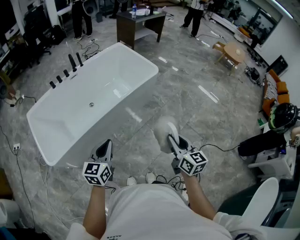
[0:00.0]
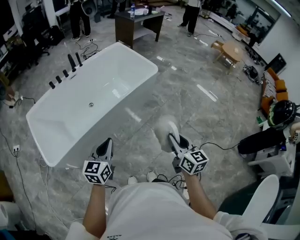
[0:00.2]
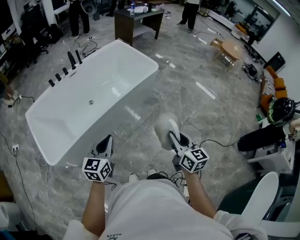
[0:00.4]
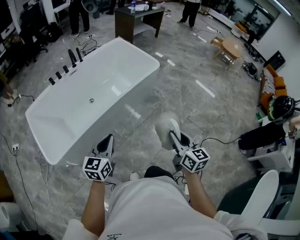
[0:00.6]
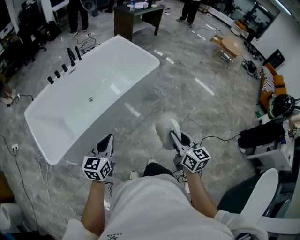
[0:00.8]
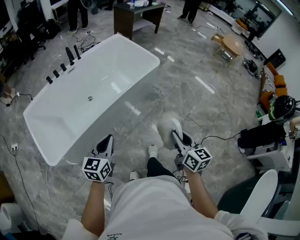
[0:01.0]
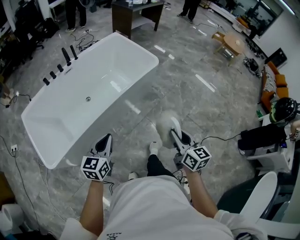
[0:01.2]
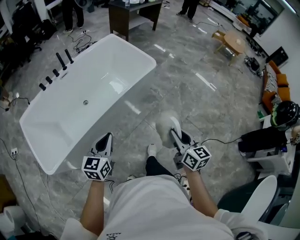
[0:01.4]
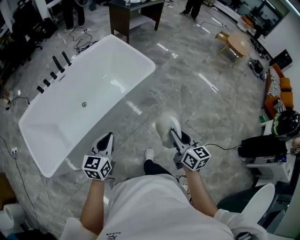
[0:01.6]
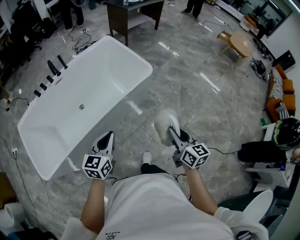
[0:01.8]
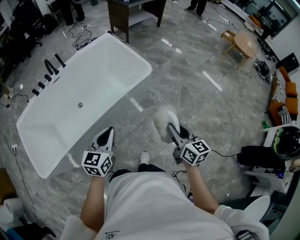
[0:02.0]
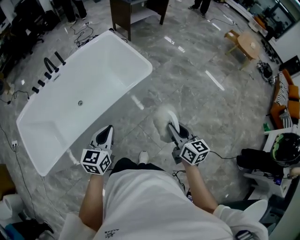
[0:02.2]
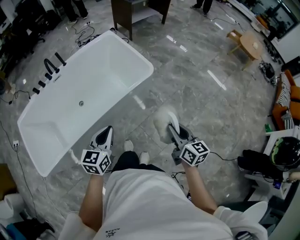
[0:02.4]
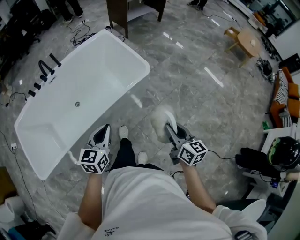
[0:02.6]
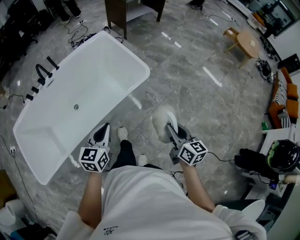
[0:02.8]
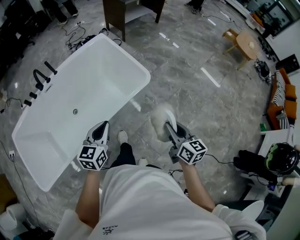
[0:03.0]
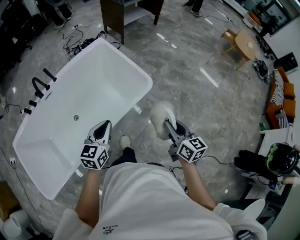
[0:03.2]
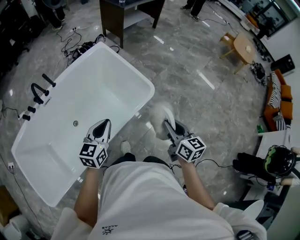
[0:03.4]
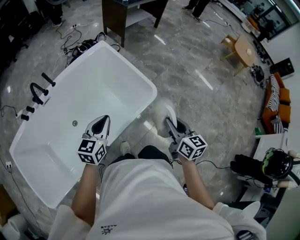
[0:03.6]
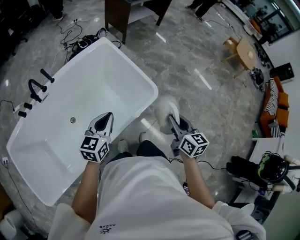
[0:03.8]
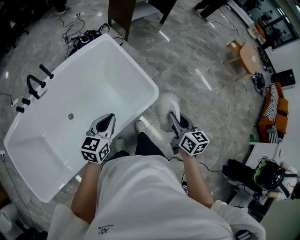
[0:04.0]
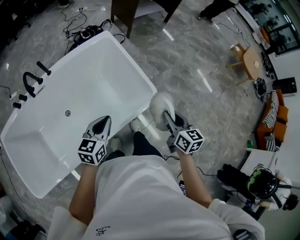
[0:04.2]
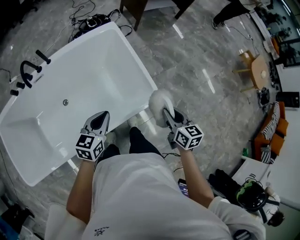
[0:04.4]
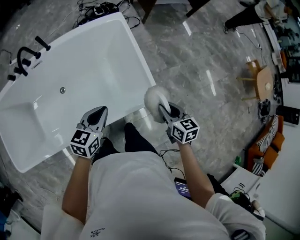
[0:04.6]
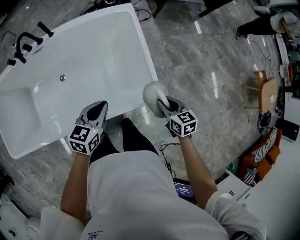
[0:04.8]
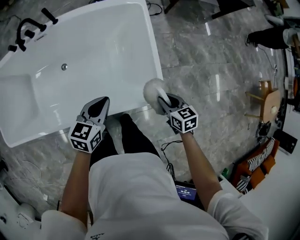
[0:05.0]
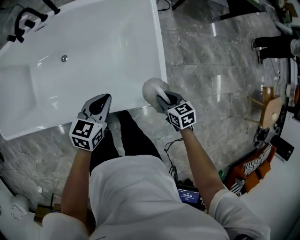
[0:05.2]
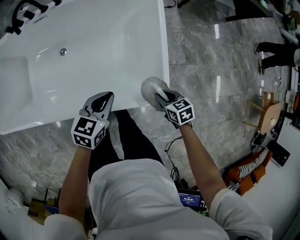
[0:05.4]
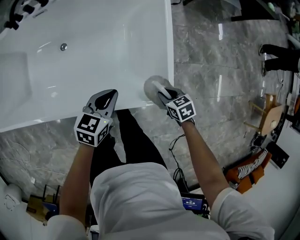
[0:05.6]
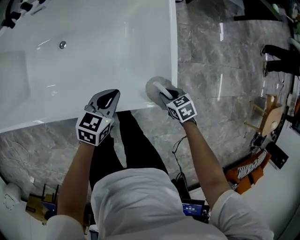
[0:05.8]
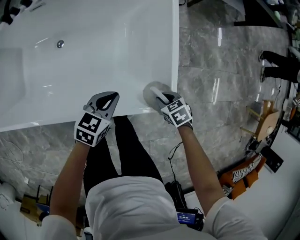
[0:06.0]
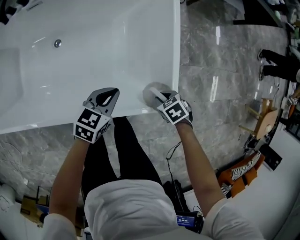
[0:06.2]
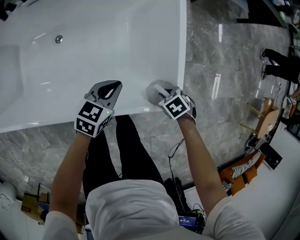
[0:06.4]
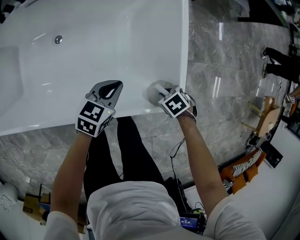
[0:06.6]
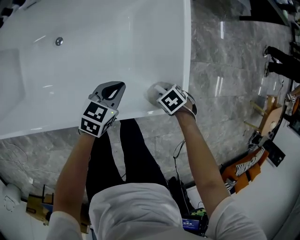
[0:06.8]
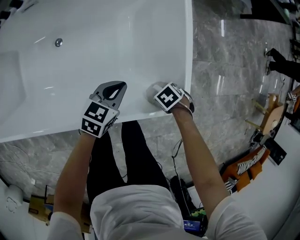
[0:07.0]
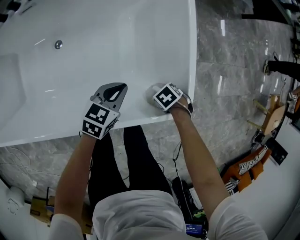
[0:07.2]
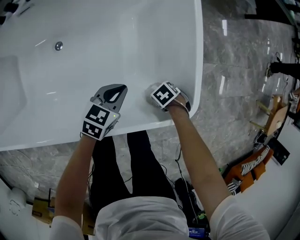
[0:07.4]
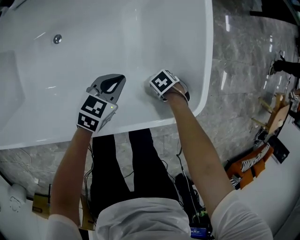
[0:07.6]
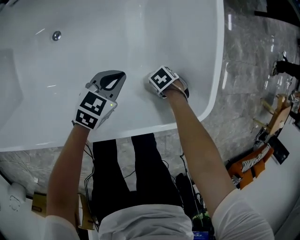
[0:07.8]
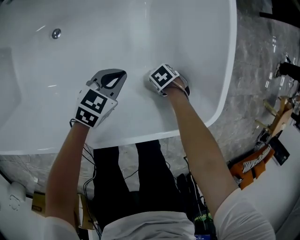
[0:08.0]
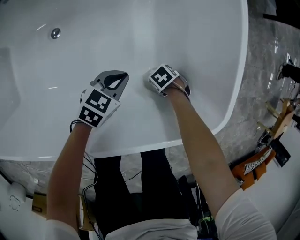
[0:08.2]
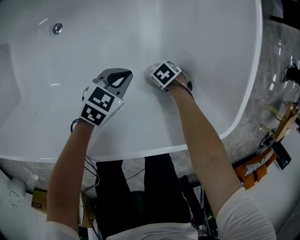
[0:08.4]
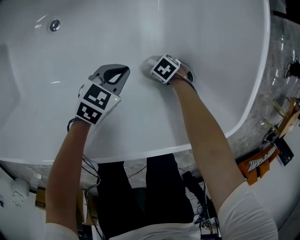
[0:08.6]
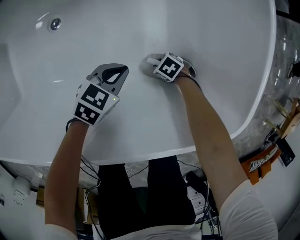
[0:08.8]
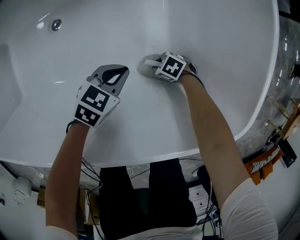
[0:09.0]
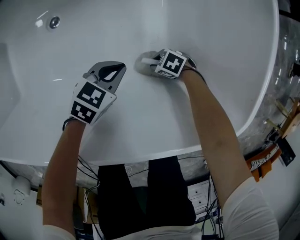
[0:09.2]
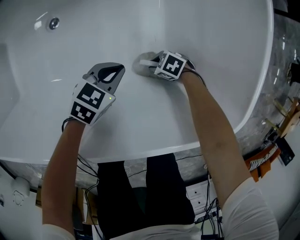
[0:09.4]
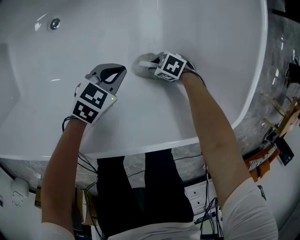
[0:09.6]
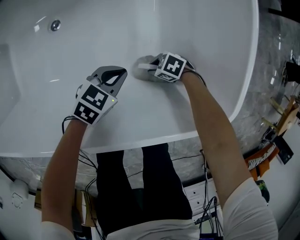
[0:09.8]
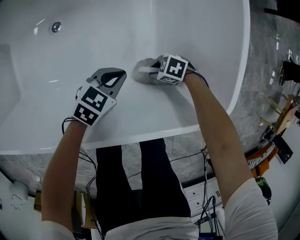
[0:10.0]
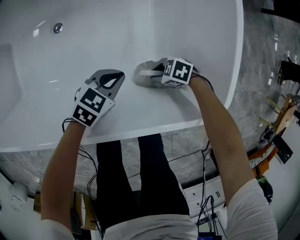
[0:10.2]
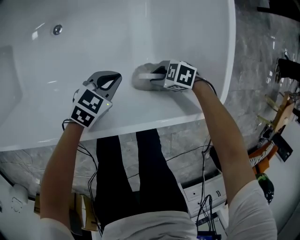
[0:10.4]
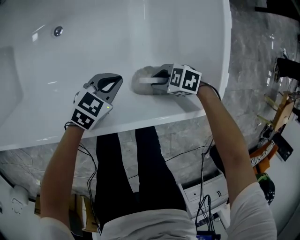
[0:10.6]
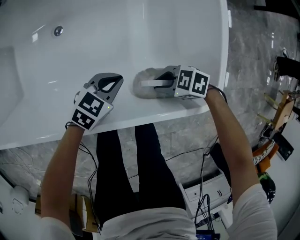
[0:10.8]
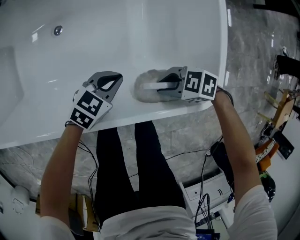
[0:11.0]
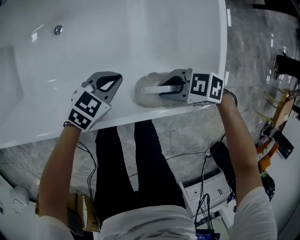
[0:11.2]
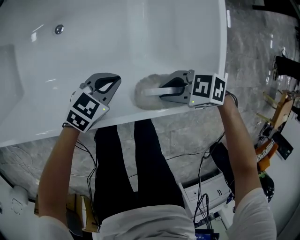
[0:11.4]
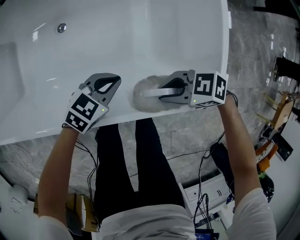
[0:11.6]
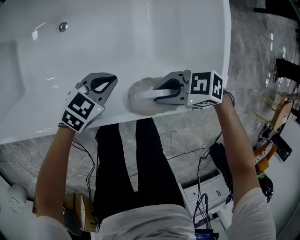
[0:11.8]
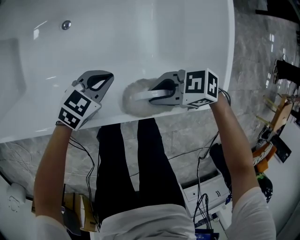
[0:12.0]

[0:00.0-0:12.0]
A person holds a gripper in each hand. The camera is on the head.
0:00.0 to 0:01.6: The grippers both shift forward by about 15 cm.
0:01.6 to 0:03.0: The grippers both shift forward by approximately 25 cm.
0:03.0 to 0:04.4: Both grippers travel together forward, some 25 cm.
0:04.4 to 0:06.0: The two grippers go about 25 cm downward. The right gripper points its fingers roughly 40 degrees further downward.
0:06.0 to 0:07.6: The right gripper shifts approximately 20 cm downward, and changes its angle by roughly 30 degrees. Meanwhile the left gripper is displaced downward by some 10 cm.
0:07.6 to 0:09.0: Both grippers travel together downward, roughly 15 cm. The right gripper swivels about 30 degrees.
0:09.0 to 0:10.4: The left gripper goes about 10 cm upward; the right gripper goes roughly 20 cm upward.
0:10.4 to 0:12.0: The right gripper moves upward, roughly 15 cm, and rotates approximately 20 degrees, while the left gripper changes place by roughly 10 cm.

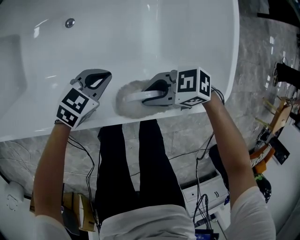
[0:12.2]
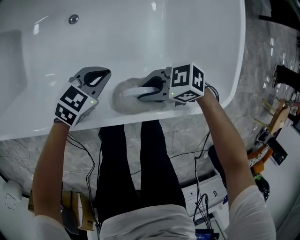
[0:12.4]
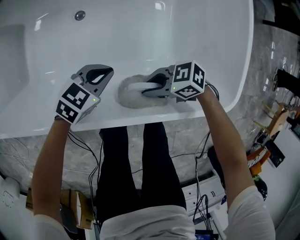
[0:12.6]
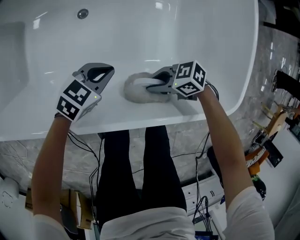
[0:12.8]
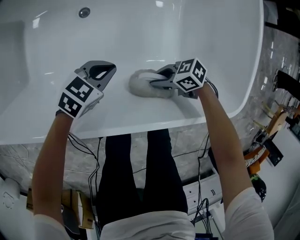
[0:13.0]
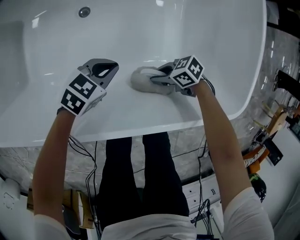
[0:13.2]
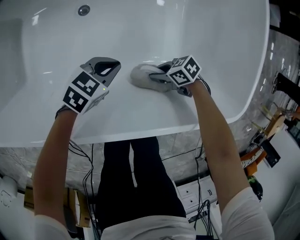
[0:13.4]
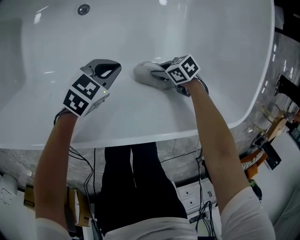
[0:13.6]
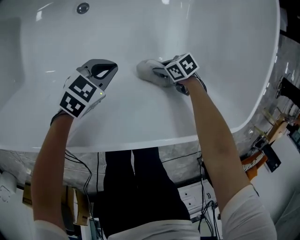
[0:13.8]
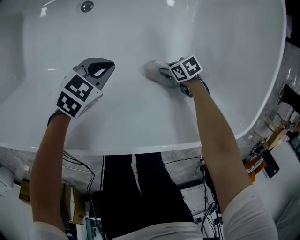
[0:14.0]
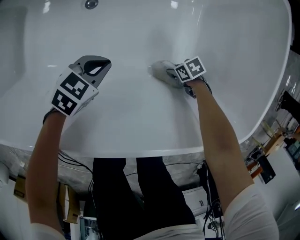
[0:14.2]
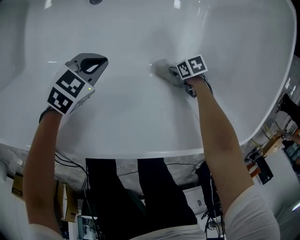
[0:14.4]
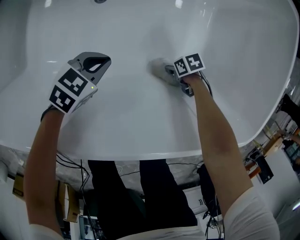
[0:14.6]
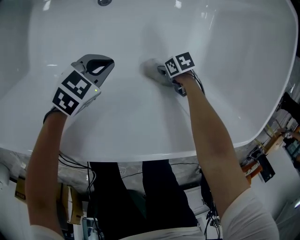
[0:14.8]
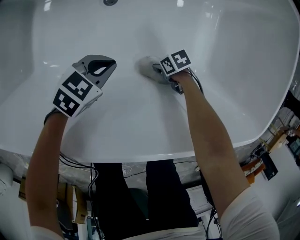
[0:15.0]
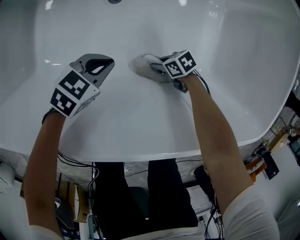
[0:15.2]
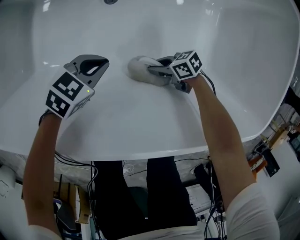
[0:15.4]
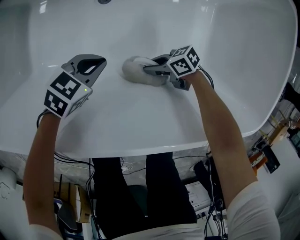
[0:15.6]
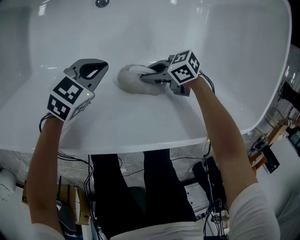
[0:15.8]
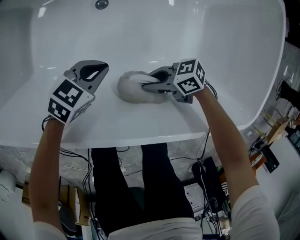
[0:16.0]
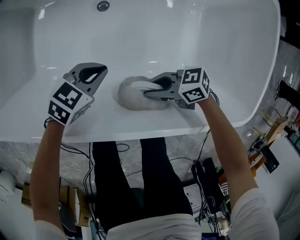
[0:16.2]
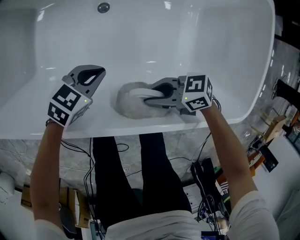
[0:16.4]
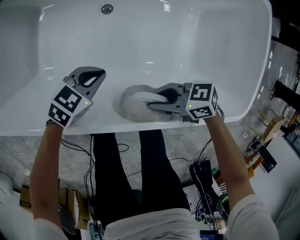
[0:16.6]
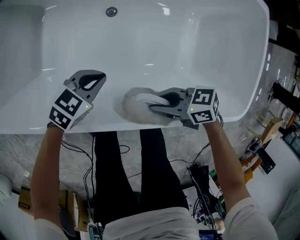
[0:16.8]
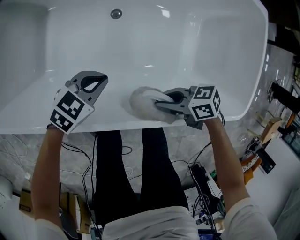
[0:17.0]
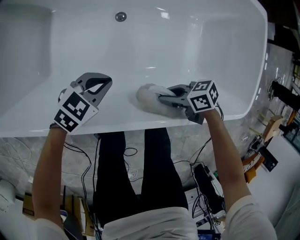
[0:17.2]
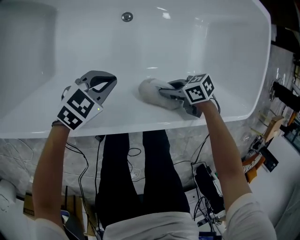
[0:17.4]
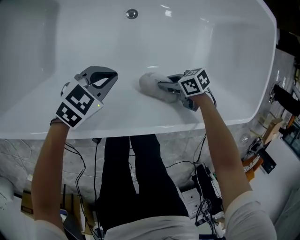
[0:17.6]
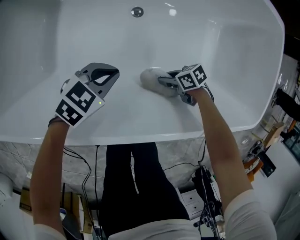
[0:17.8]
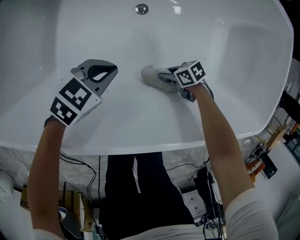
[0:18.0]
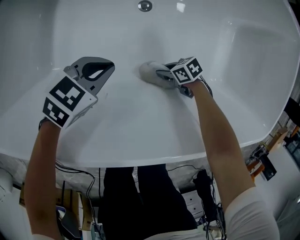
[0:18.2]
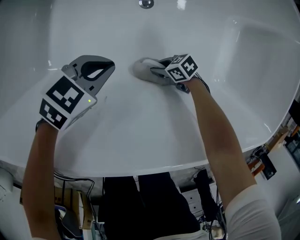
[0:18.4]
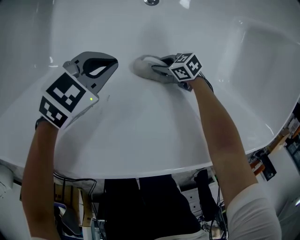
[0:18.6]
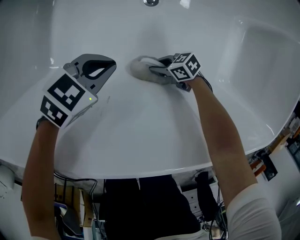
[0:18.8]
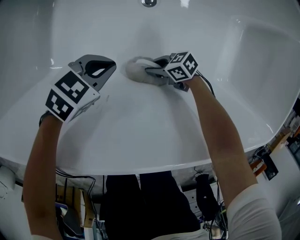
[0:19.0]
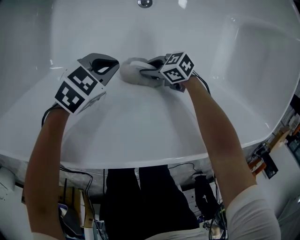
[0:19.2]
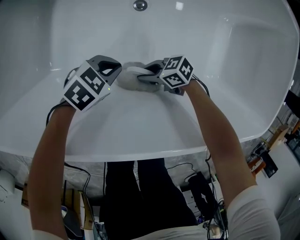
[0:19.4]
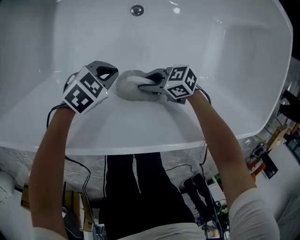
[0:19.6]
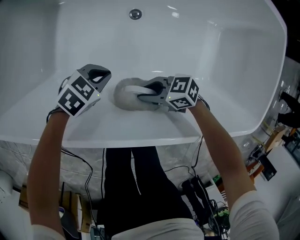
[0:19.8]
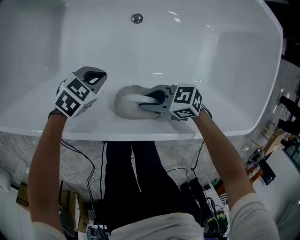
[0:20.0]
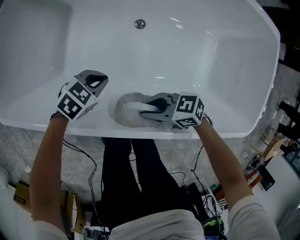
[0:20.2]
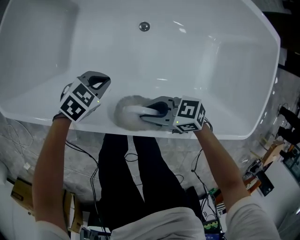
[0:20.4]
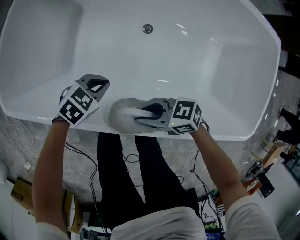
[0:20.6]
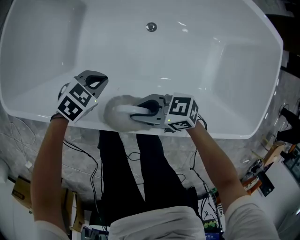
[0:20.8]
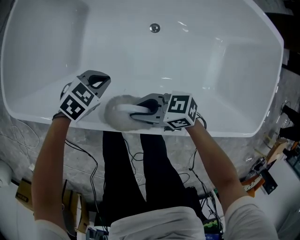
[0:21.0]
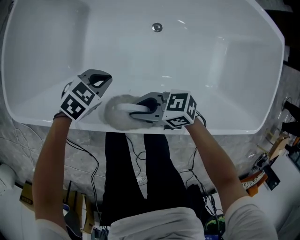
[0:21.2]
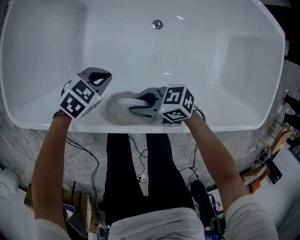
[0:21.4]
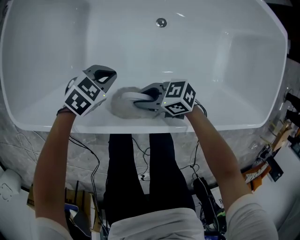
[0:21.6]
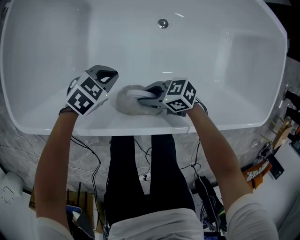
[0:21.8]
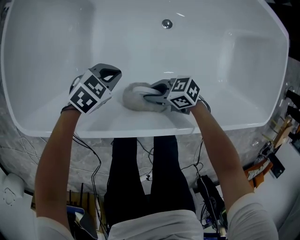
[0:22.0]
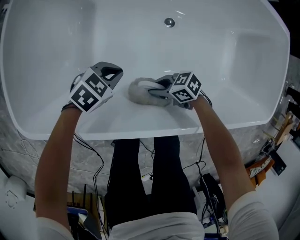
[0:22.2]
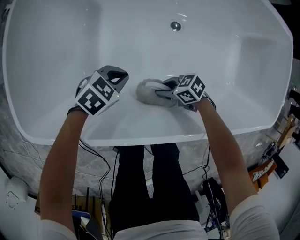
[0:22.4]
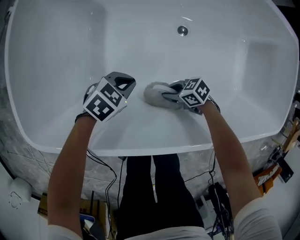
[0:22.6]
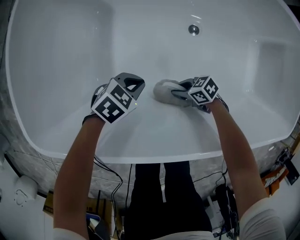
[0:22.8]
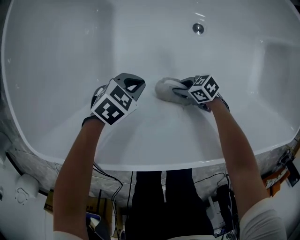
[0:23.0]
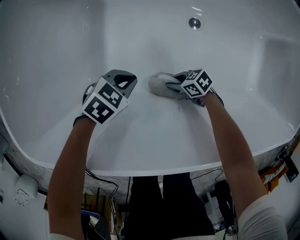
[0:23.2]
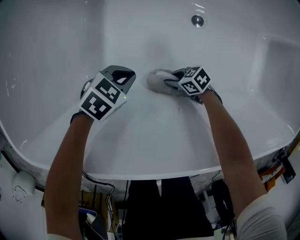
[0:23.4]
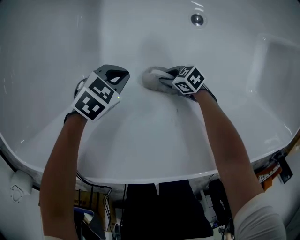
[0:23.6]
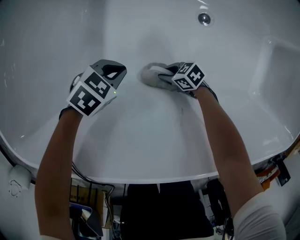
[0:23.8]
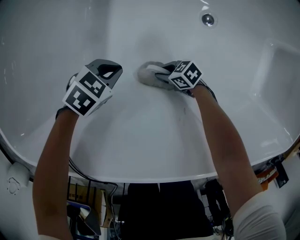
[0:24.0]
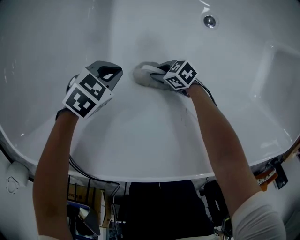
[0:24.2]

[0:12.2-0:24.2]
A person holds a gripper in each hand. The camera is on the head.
0:12.2 to 0:13.8: The right gripper is displaced downward by roughly 30 cm, and turns by about 40 degrees. The left gripper is displaced downward by some 10 cm.
0:13.8 to 0:15.2: The right gripper changes place by about 15 cm. Meanwhile the left gripper moves approximately 15 cm.
0:15.2 to 0:16.6: The left gripper travels upward by roughly 10 cm; the right gripper is displaced upward by about 30 cm, and swivels roughly 30 degrees.
0:16.6 to 0:18.2: The right gripper goes about 30 cm downward, and rotates approximately 30 degrees. The left gripper shifts by some 15 cm.
0:18.2 to 0:19.8: The right gripper moves upward, approximately 20 cm, and changes its angle by some 30 degrees.
0:19.8 to 0:21.2: The right gripper moves roughly 20 cm; the left gripper changes place by about 15 cm.
0:21.2 to 0:22.6: The right gripper is displaced downward by some 20 cm, and turns by some 30 degrees. Meanwhile the left gripper ends up approximately 10 cm from where it was.
0:22.6 to 0:24.2: The right gripper goes approximately 15 cm downward, while the left gripper moves downward, about 10 cm.
